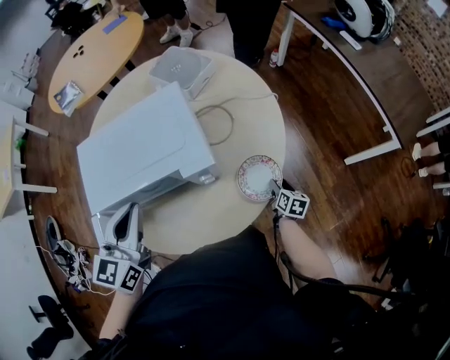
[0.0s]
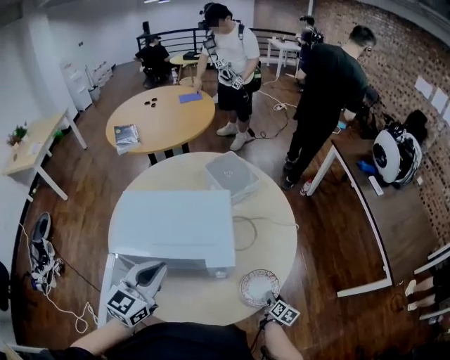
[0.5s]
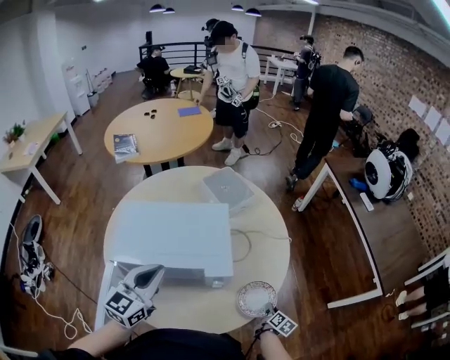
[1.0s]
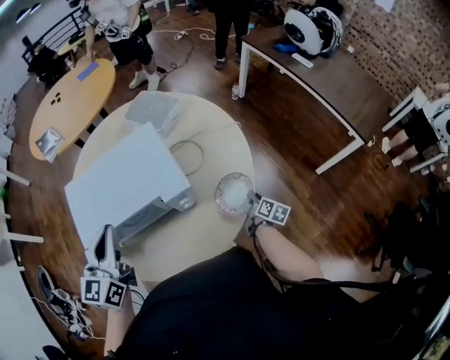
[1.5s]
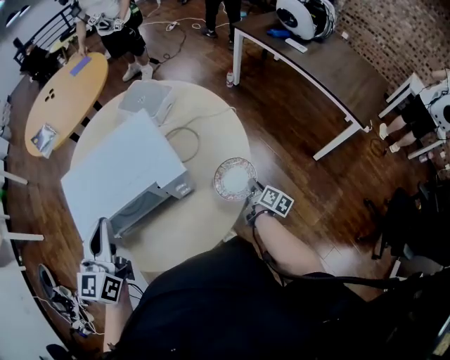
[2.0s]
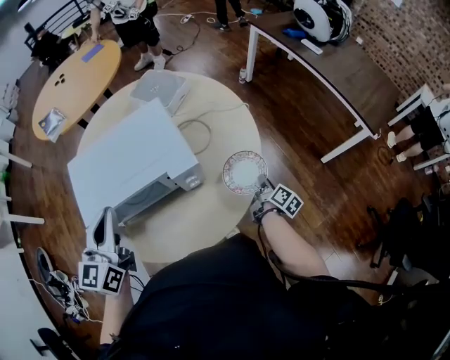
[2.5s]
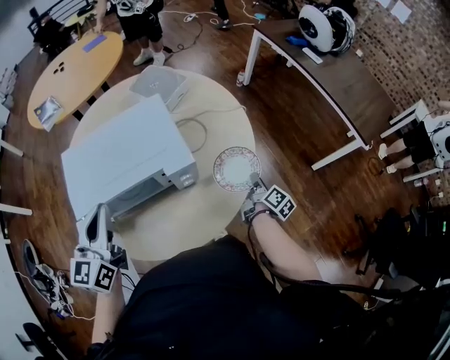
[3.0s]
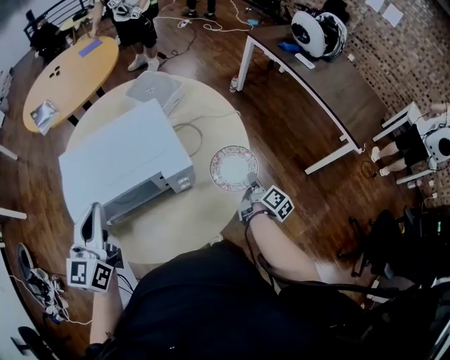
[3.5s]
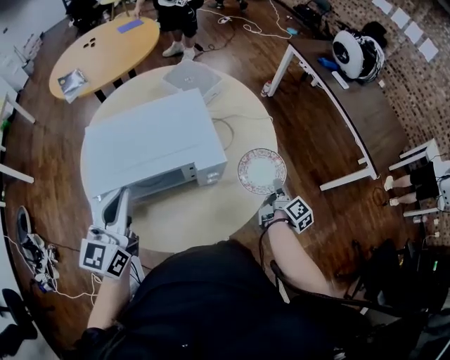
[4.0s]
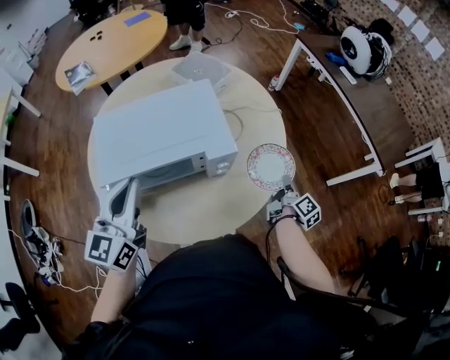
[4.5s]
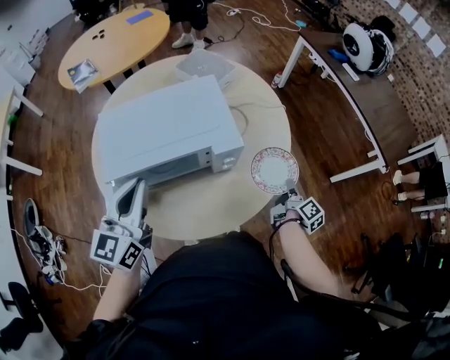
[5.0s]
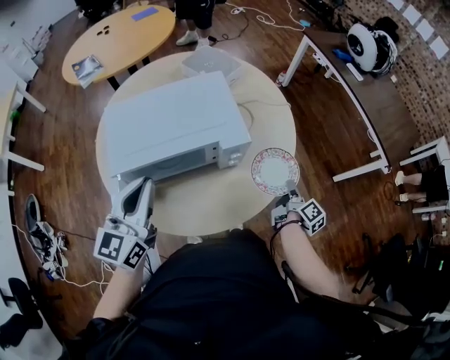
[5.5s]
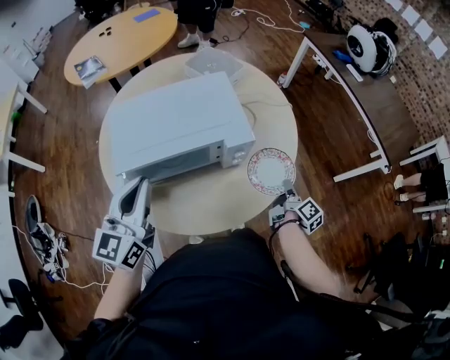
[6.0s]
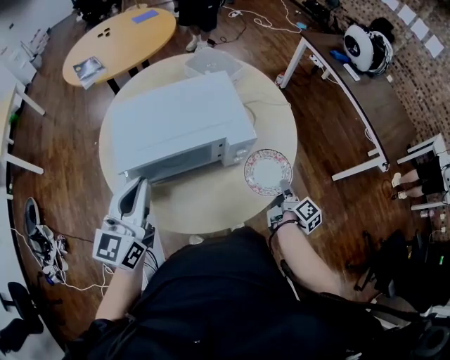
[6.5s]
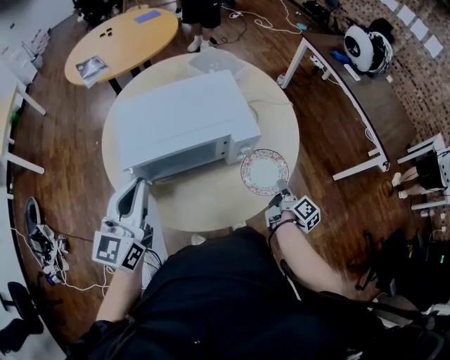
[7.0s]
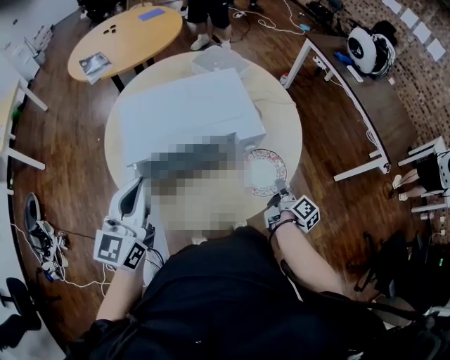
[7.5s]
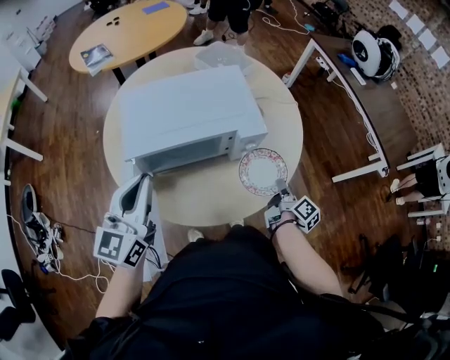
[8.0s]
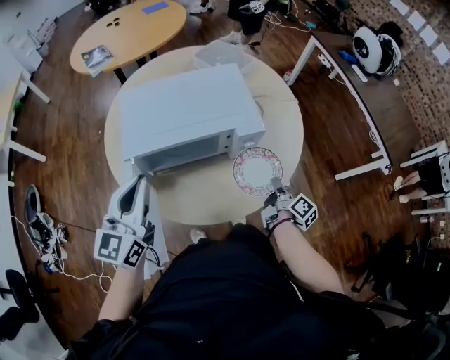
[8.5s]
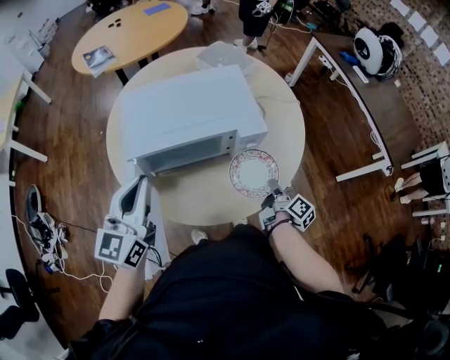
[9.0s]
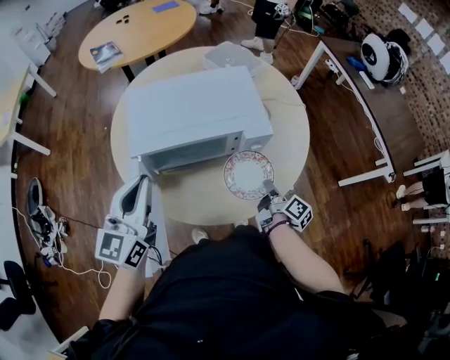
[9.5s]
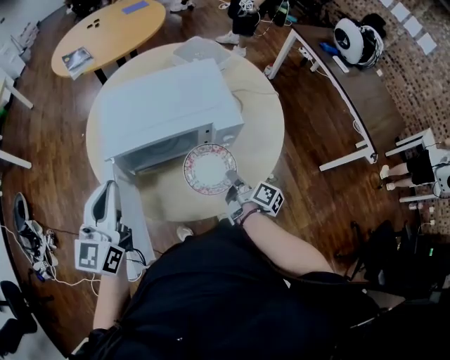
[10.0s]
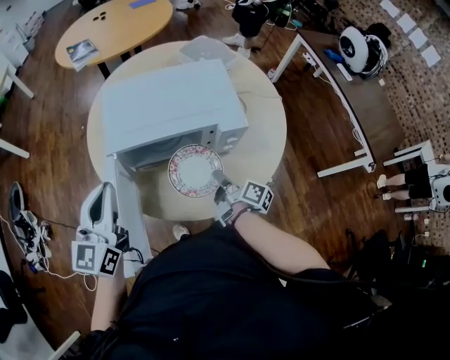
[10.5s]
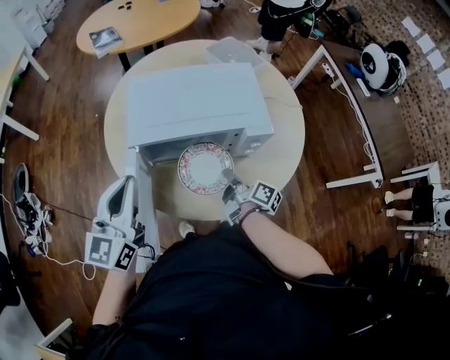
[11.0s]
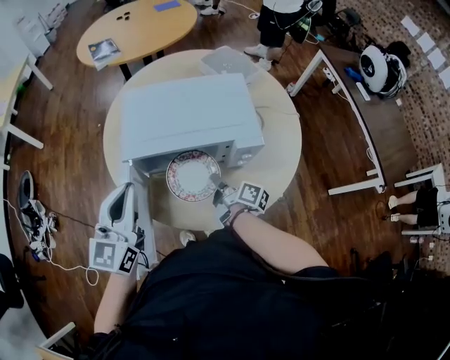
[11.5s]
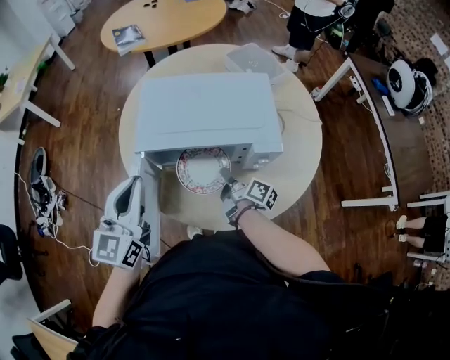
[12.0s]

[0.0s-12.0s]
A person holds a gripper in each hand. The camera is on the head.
0.0s to 2.0s: The right gripper moves upward, roughly 5 cm, swivels approximately 30 degrees, and closes up, while the left gripper shifts by some 5 cm.
2.0s to 4.0s: The right gripper moves upward, about 10 cm.
4.0s to 6.0s: The right gripper travels backward by some 5 cm.
6.0s to 8.0s: The right gripper heads to the left, covering some 5 cm.
8.0s to 10.0s: The right gripper shifts some 10 cm to the left.
10.0s to 12.0s: The right gripper heads to the left and forward, covering some 15 cm.

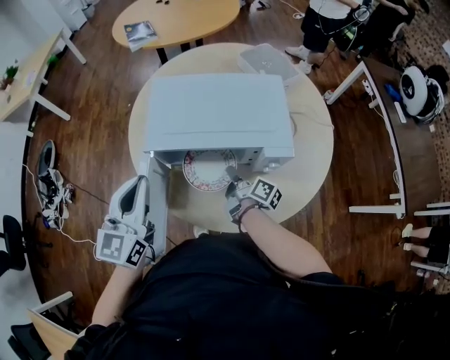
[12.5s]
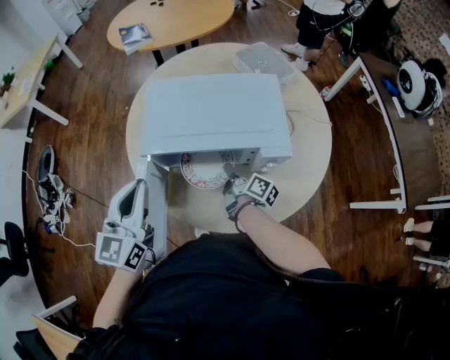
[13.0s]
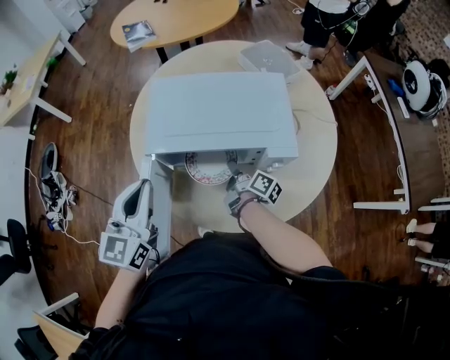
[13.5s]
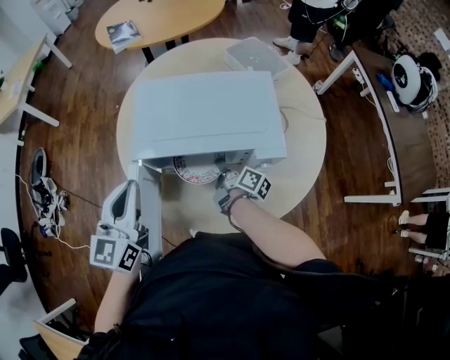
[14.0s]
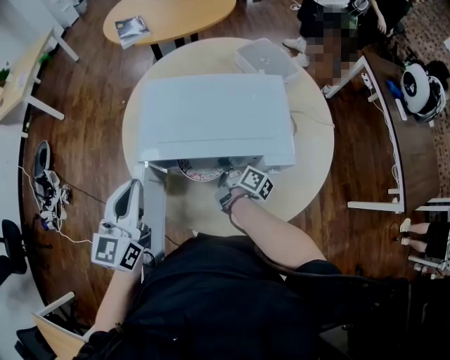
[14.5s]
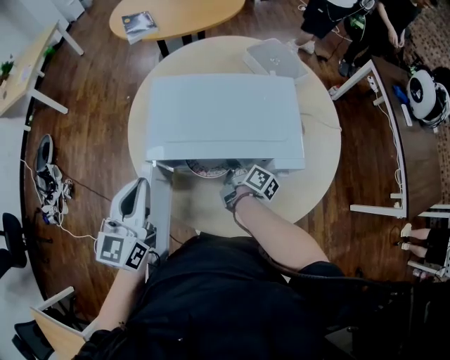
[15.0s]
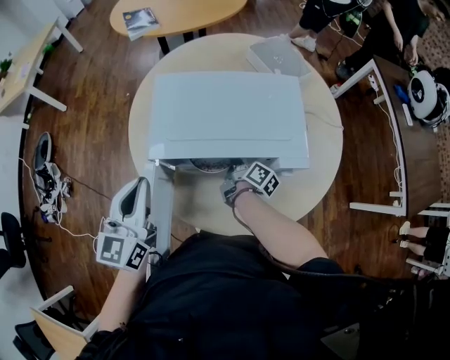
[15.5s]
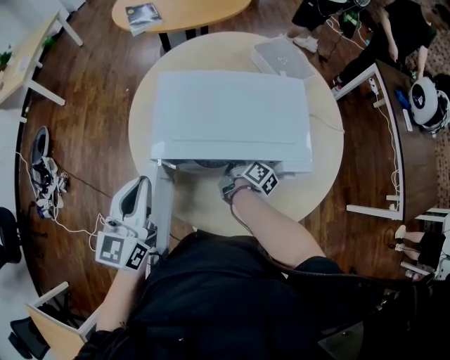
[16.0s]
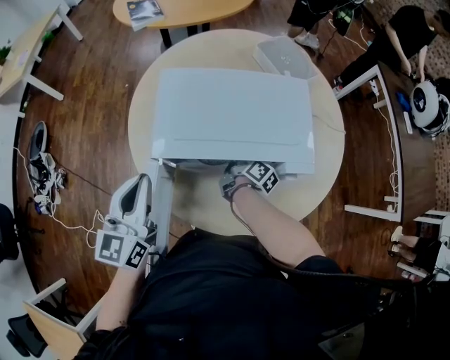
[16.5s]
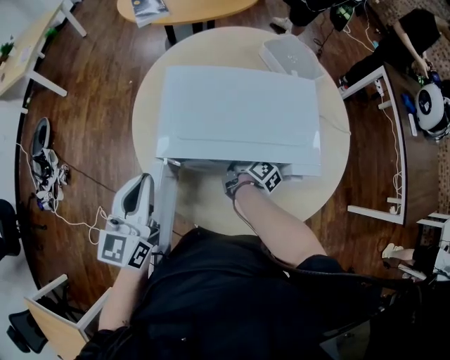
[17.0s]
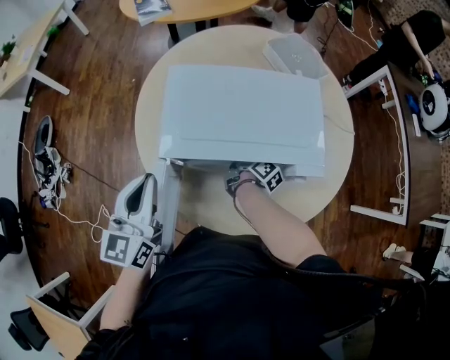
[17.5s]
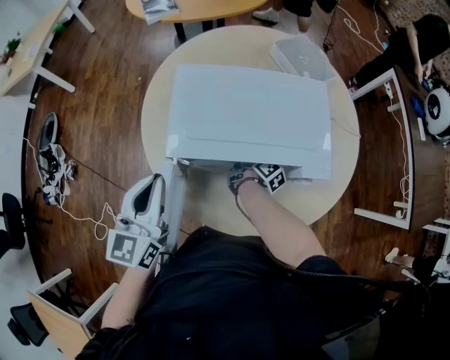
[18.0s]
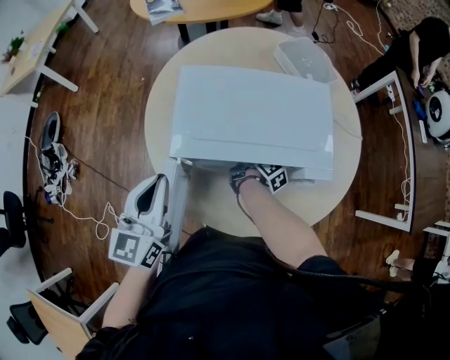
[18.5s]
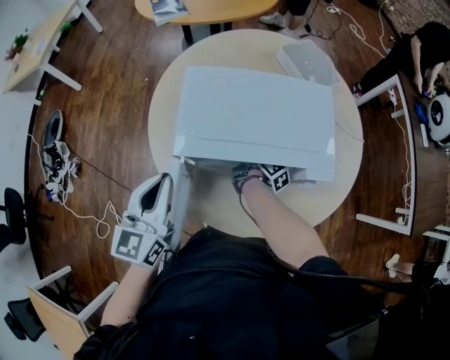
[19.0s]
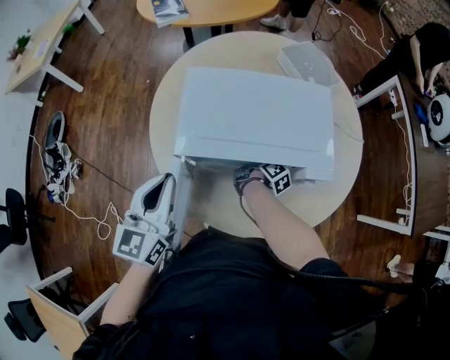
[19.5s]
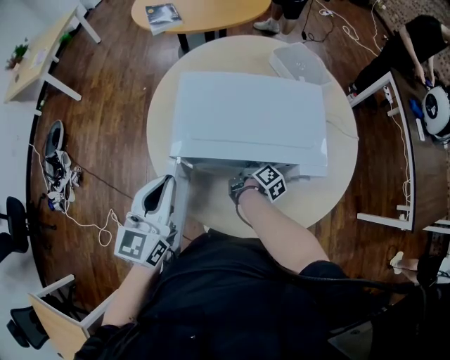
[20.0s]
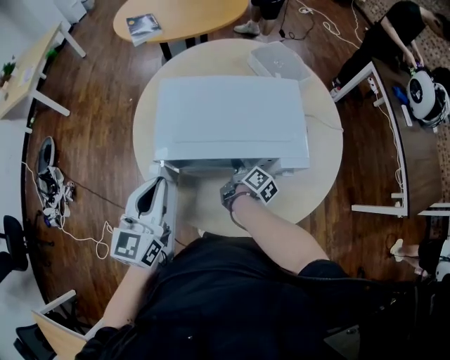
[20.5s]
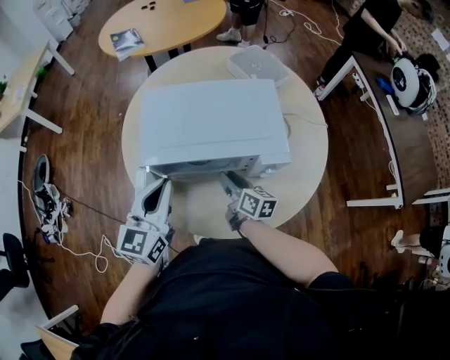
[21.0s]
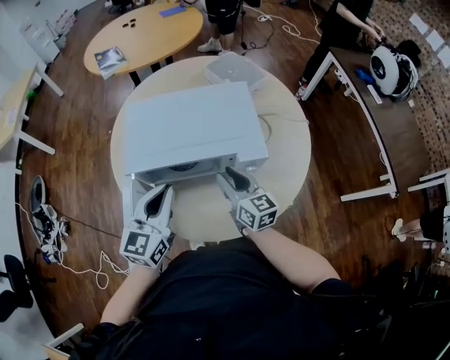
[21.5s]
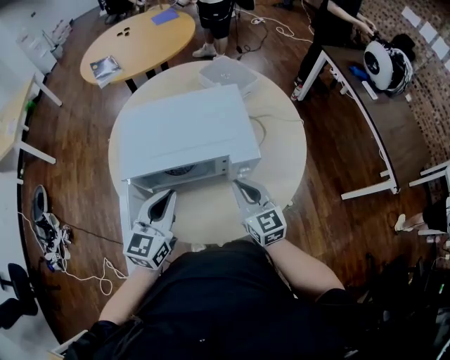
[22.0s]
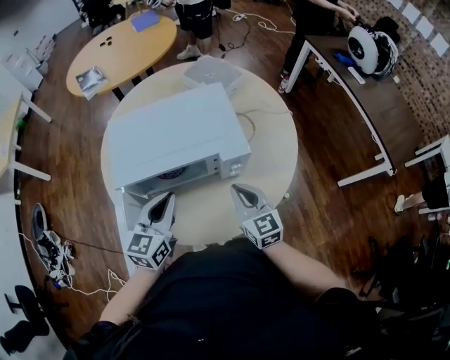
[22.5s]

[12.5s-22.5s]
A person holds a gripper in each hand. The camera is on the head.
12.5s to 14.5s: The right gripper travels forward by roughly 5 cm.
14.5s to 16.5s: The grippers make only small movements.
16.5s to 18.5s: The grippers stay close to where they were, moving slightly.
18.5s to 20.5s: The right gripper moves some 5 cm, and opens.
20.5s to 22.5s: The left gripper goes about 15 cm to the right and downward, while the right gripper heads upward, backward and to the right, covering roughly 20 cm, twists some 70 degrees counterclockwise, seen from behind, and closes up.

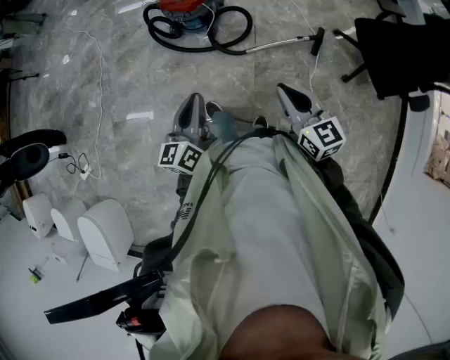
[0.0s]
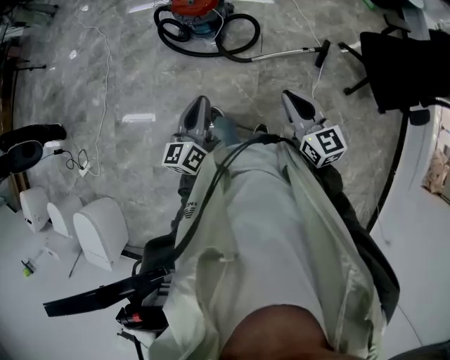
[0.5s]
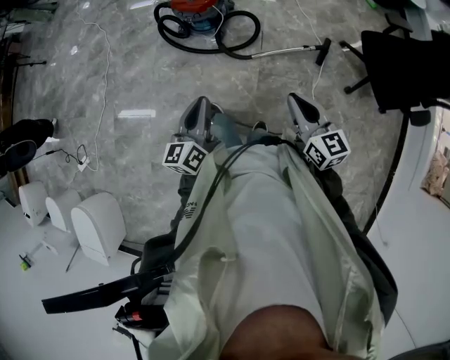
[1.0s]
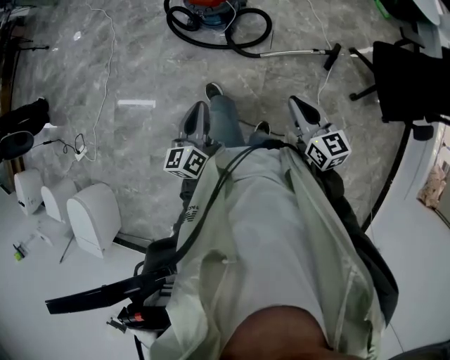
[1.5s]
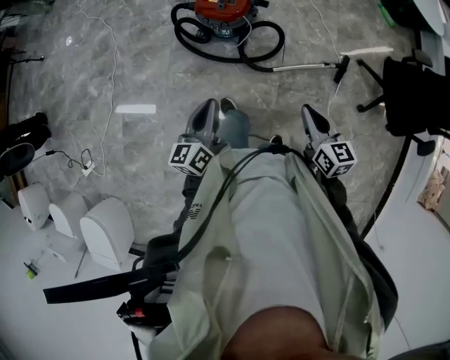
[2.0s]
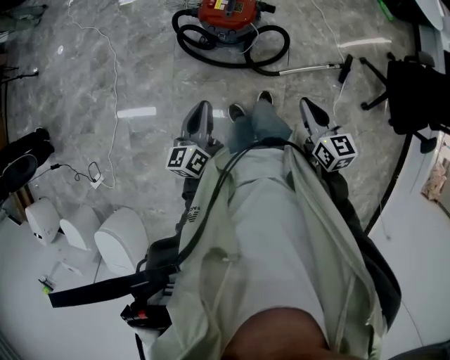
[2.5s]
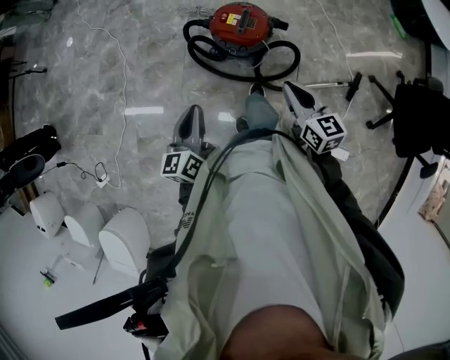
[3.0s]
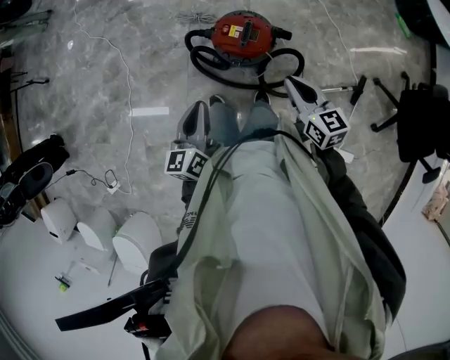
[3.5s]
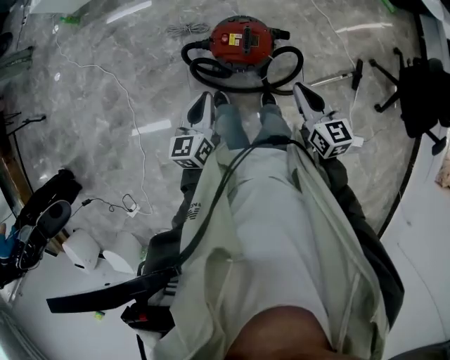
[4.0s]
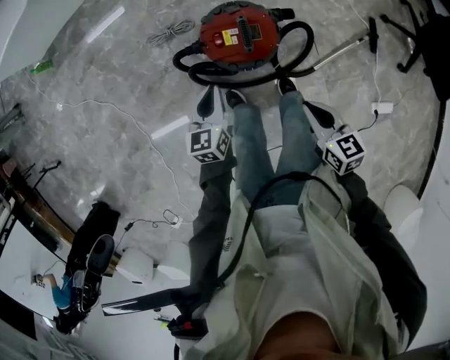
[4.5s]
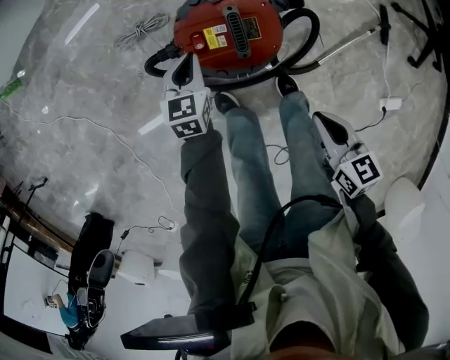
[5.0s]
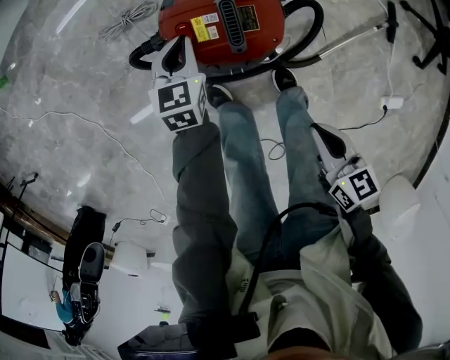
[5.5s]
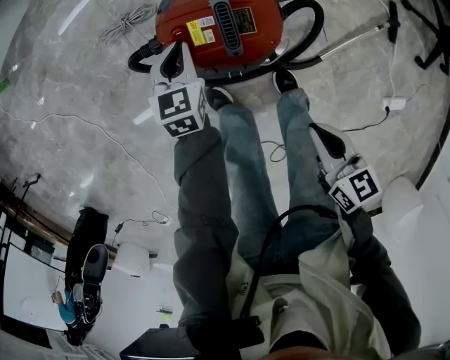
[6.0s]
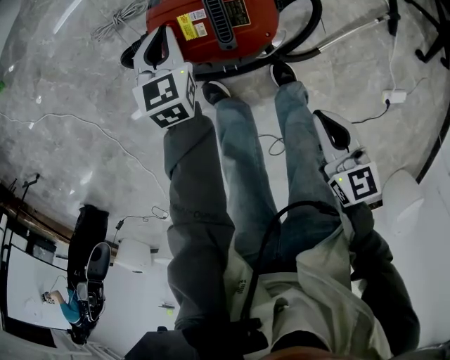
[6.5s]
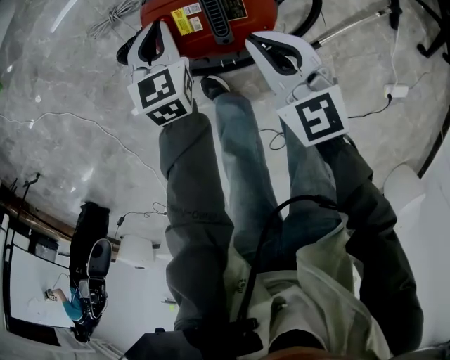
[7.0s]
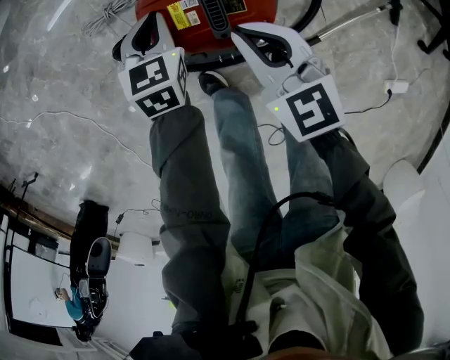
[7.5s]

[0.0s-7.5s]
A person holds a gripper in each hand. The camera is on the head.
0.0s to 2.0s: The two grippers go some 15 cm forward and to the left.
2.0s to 4.0s: Both grippers move forward, approximately 35 cm. The left gripper turns by some 20 degrees.
4.0s to 5.5s: The left gripper travels downward and forward by some 40 cm, and changes its angle by approximately 30 degrees. The right gripper heads downward, covering some 30 cm, and rotates some 30 degrees.
5.5s to 7.5s: The right gripper is displaced forward by roughly 20 cm, and turns by approximately 30 degrees.
